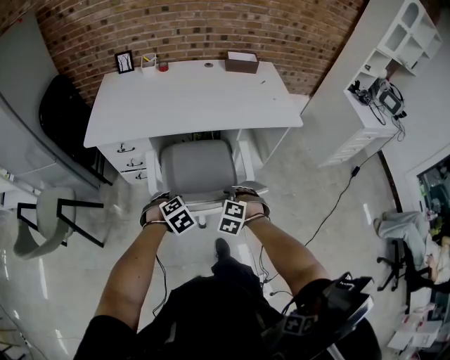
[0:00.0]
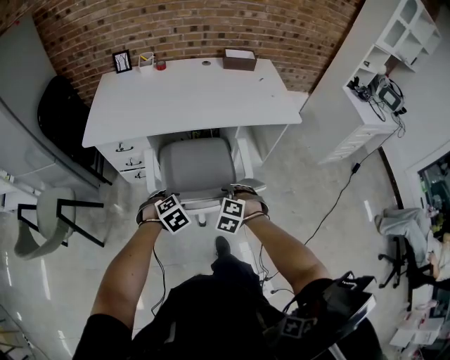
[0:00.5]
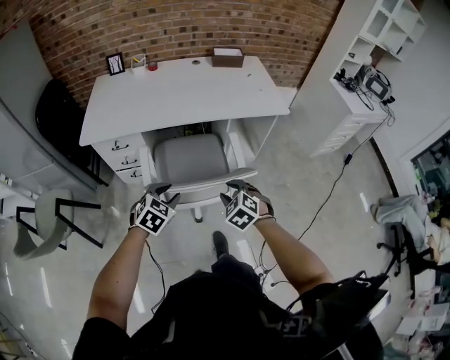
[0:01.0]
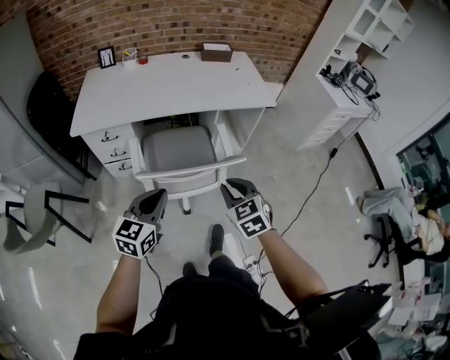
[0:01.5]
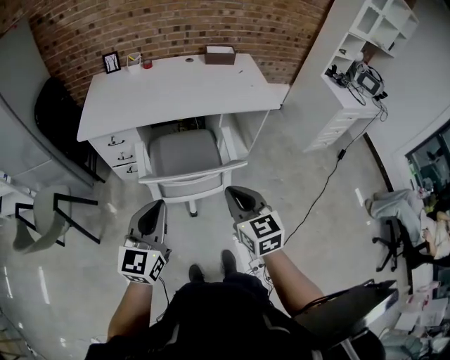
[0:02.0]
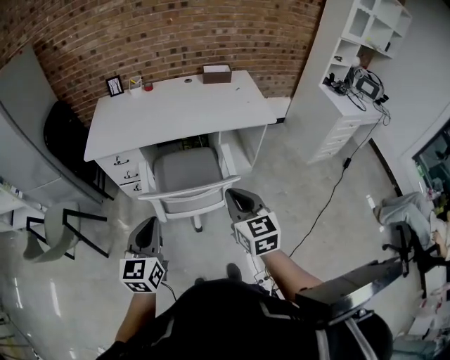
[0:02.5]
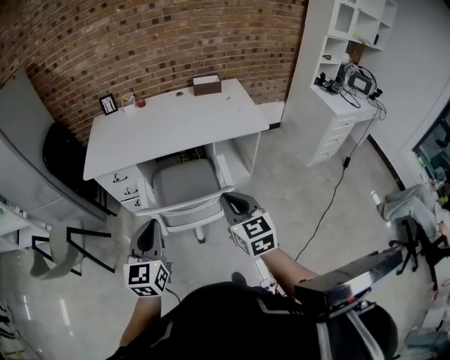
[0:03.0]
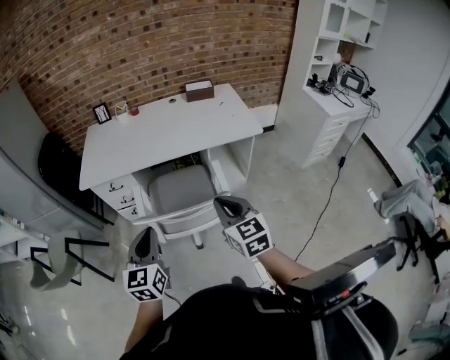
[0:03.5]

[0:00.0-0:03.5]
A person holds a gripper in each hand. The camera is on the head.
0:00.0 to 0:02.0: Both grippers move upward and backward, about 30 cm. The right gripper points its fingers about 40 degrees further upward, and closes; the left gripper points its fingers some 60 degrees further upward, and closes.
0:02.0 to 0:03.5: The right gripper is displaced to the right by roughly 5 cm.

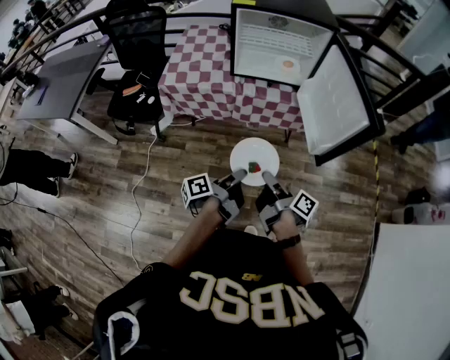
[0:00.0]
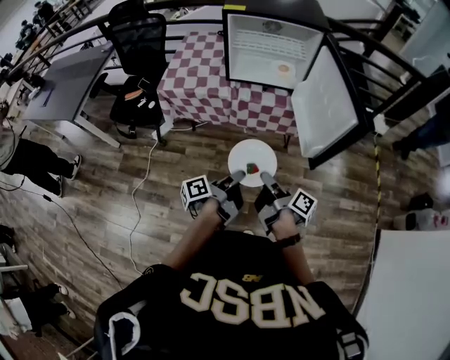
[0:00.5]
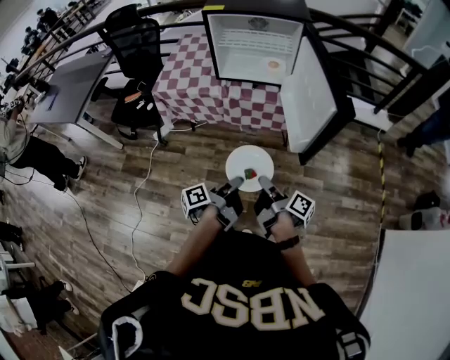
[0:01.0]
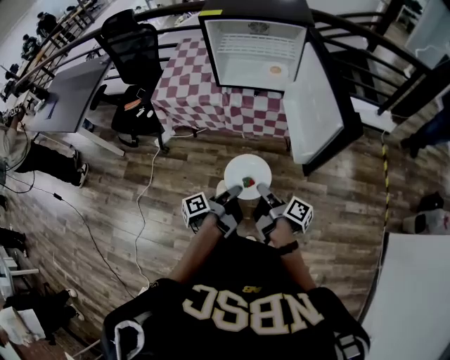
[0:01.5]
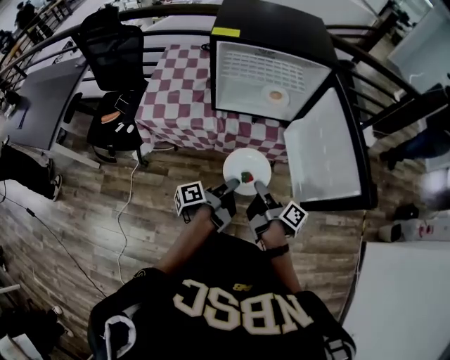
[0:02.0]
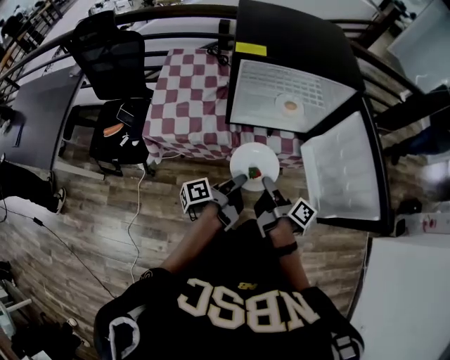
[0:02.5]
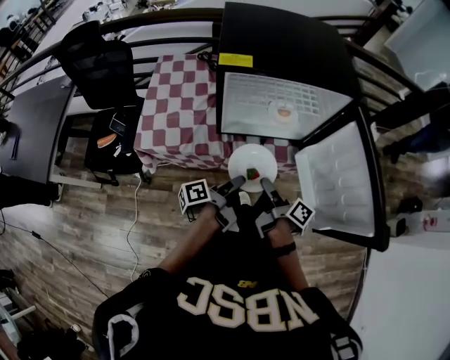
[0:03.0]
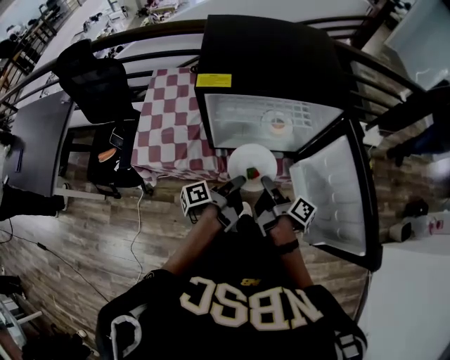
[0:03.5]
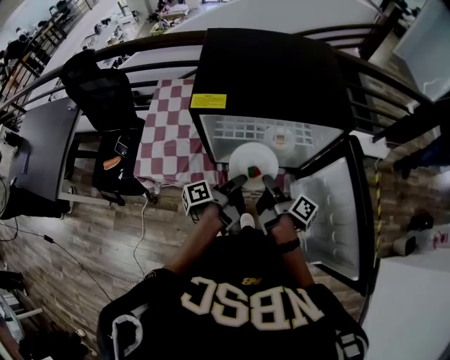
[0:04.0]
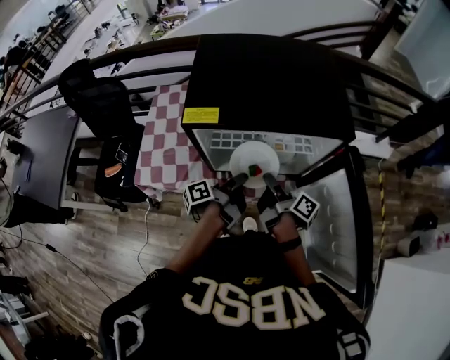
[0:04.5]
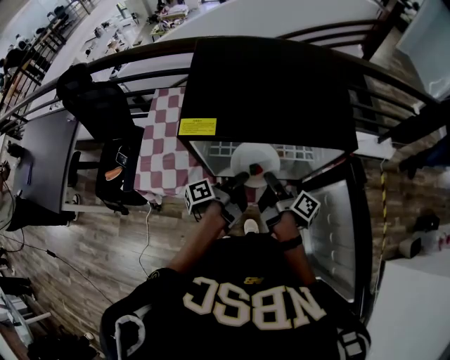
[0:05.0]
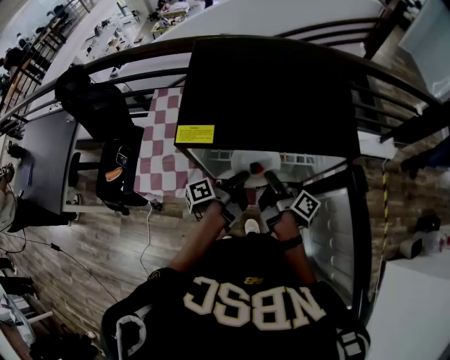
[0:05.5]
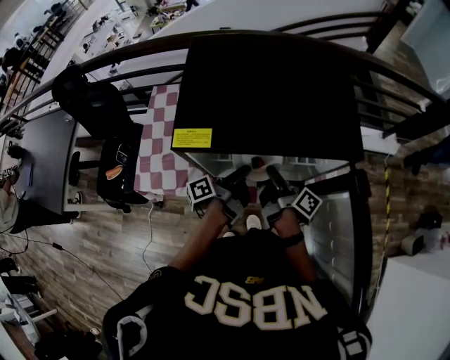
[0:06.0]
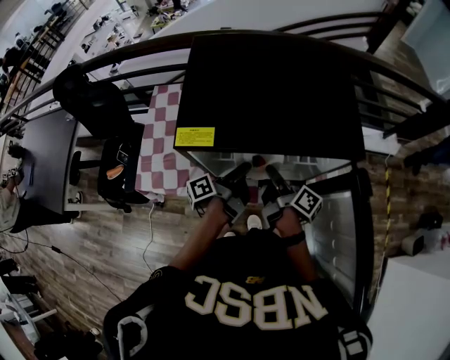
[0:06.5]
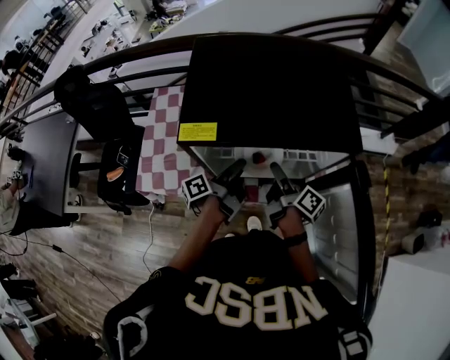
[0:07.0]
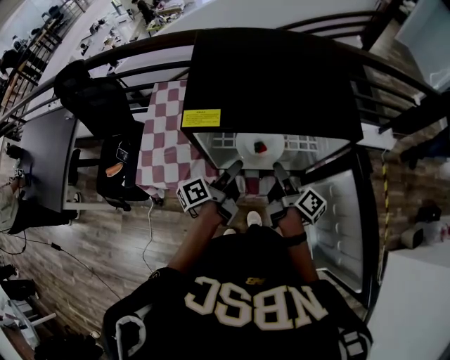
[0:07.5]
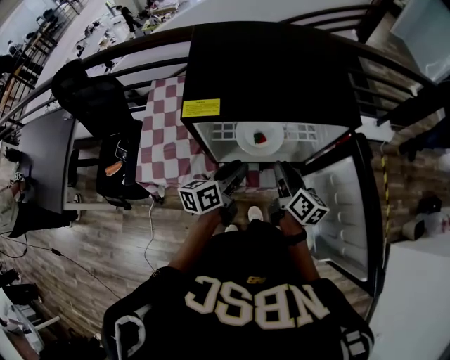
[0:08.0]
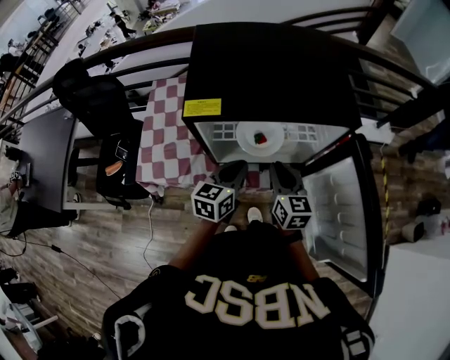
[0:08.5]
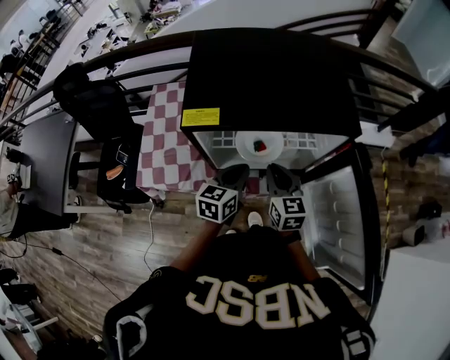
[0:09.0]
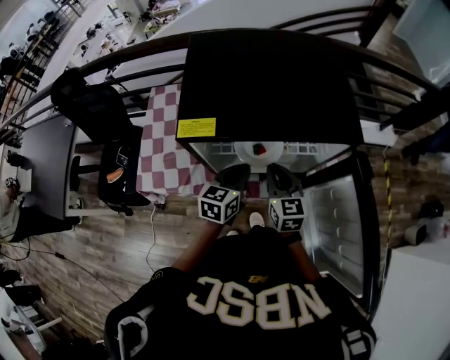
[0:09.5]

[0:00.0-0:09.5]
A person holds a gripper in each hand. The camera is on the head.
0:00.0 to 0:02.0: The right gripper moves some 20 cm.
0:02.0 to 0:04.0: The right gripper moves some 25 cm.
0:04.0 to 0:05.5: The right gripper changes place by some 10 cm.
0:05.5 to 0:07.5: The right gripper opens.
0:07.5 to 0:09.5: The right gripper twists roughly 70 degrees counterclockwise, seen from behind, and closes its fingers.

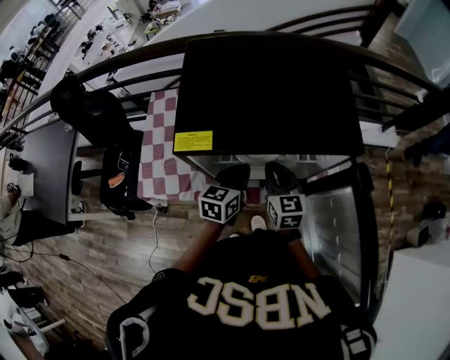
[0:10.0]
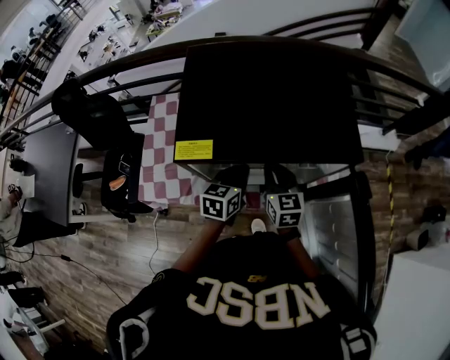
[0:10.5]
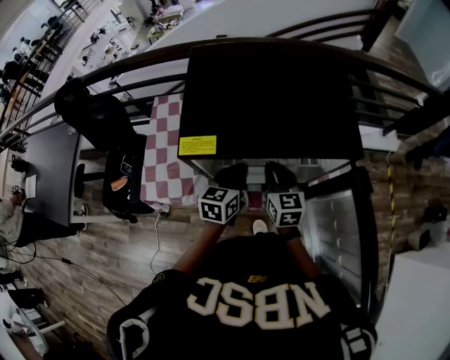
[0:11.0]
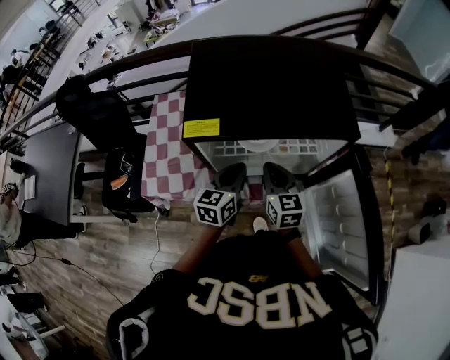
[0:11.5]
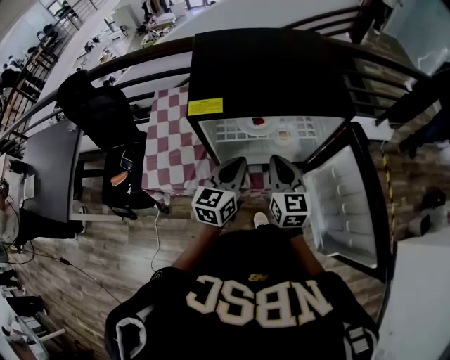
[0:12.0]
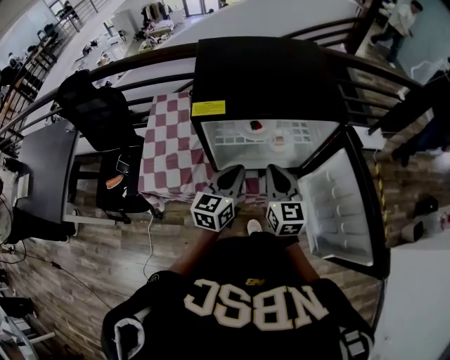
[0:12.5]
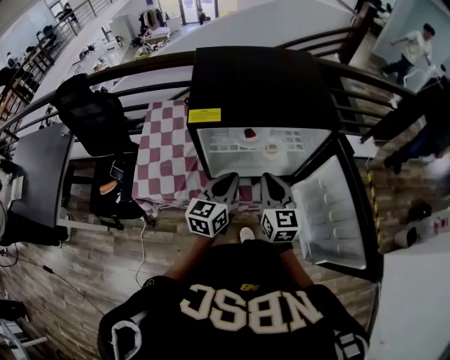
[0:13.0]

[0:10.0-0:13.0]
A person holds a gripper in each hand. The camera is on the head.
0:11.5 to 0:13.0: The right gripper moves roughly 10 cm.

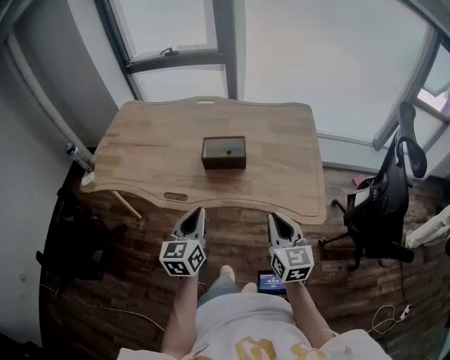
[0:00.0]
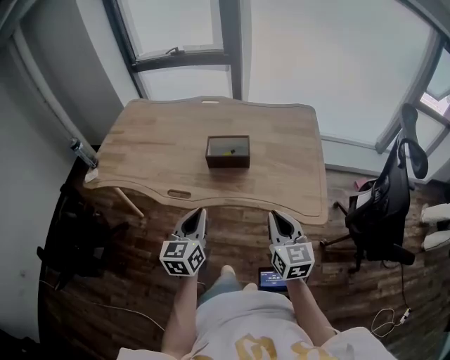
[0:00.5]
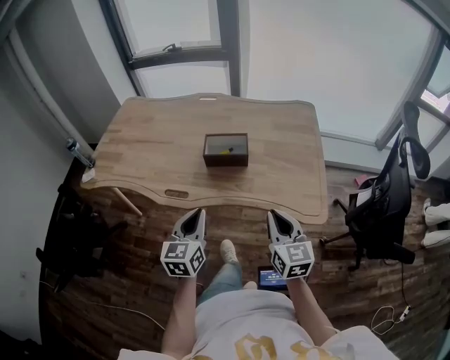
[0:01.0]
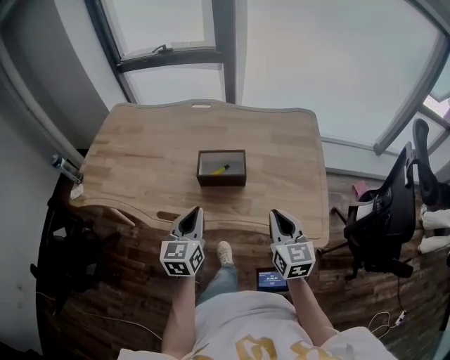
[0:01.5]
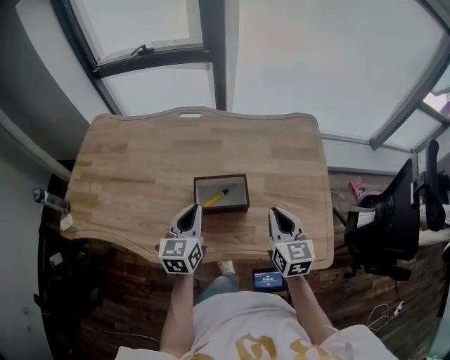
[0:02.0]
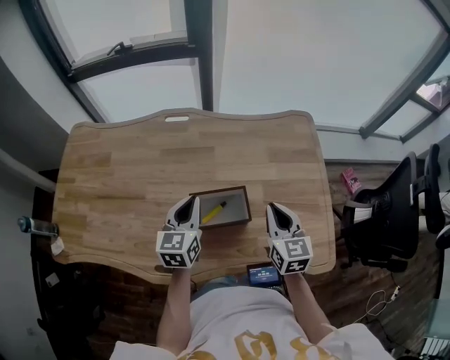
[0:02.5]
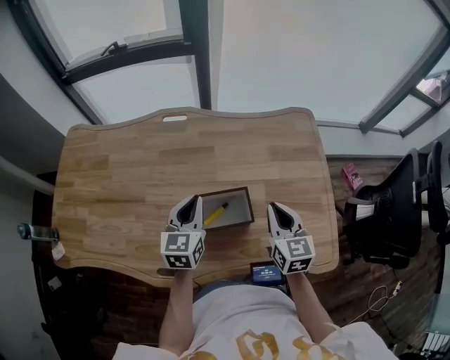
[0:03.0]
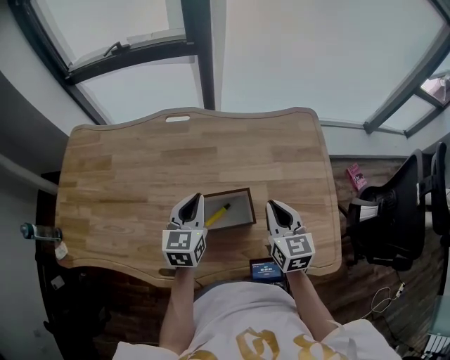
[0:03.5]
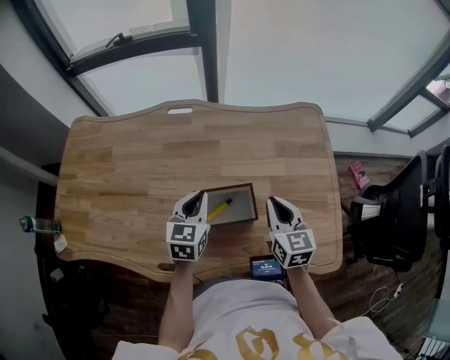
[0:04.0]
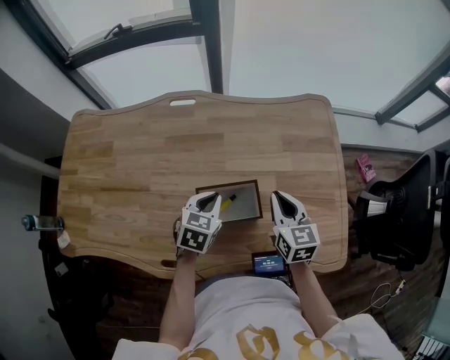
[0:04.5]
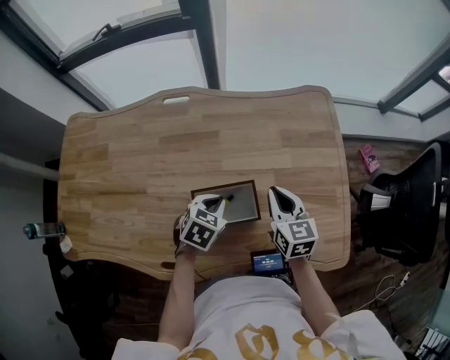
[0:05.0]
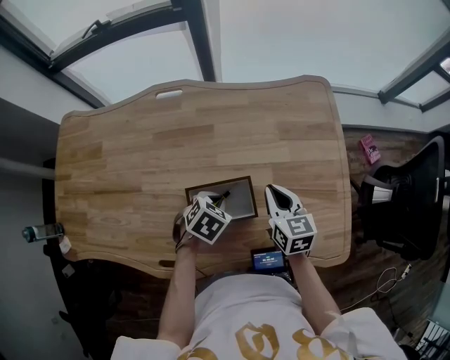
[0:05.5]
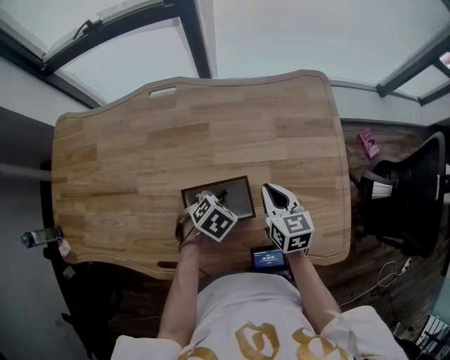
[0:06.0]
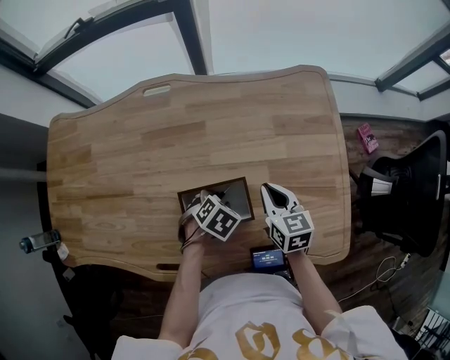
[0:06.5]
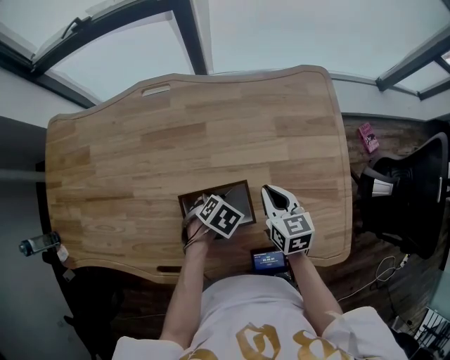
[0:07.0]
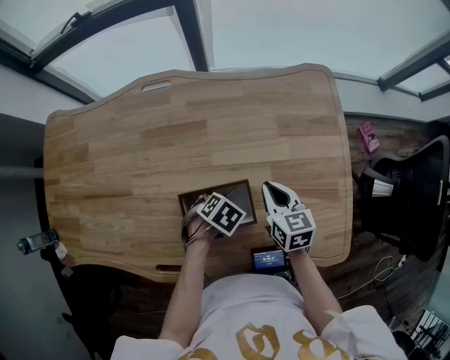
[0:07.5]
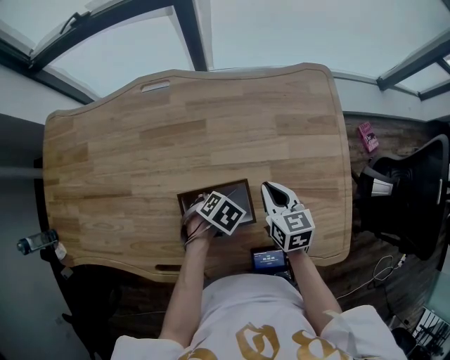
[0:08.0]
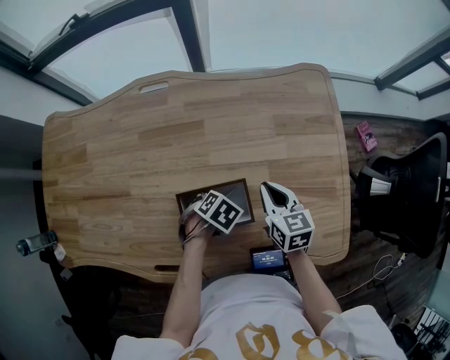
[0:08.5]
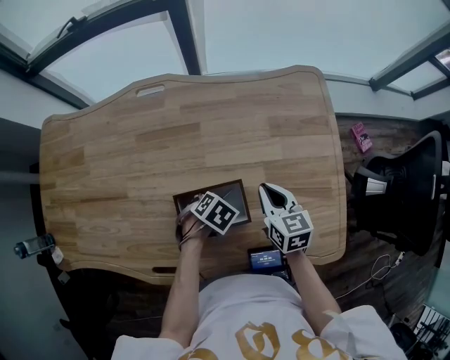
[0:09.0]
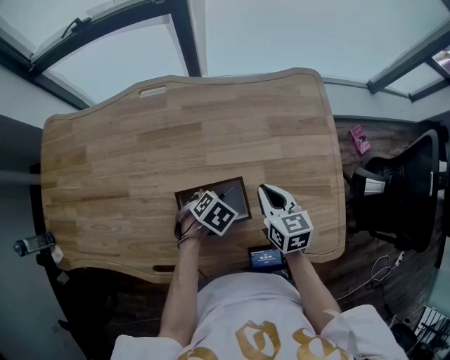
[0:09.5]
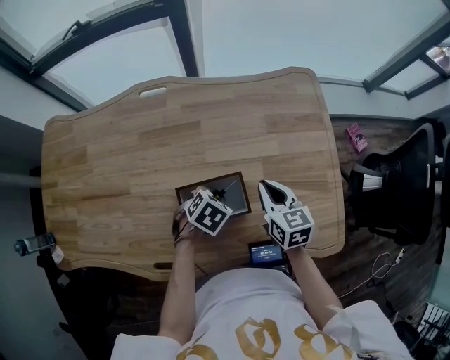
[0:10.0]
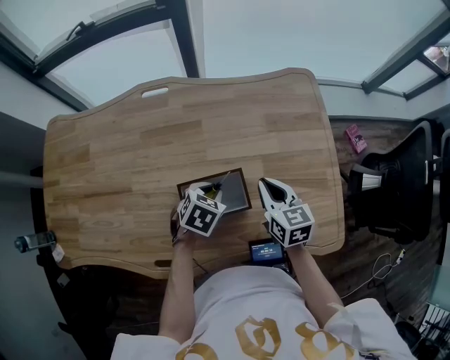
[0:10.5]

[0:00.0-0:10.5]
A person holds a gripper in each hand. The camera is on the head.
0:00.0 to 0:02.0: Both grippers travel together forward, approximately 25 cm.
0:02.0 to 0:04.0: The grippers both shift forward by some 10 cm.
0:04.0 to 0:06.5: The right gripper goes roughly 10 cm downward. The left gripper is displaced downward by some 15 cm, tips its fingers downward by approximately 50 degrees, and opens its fingers.
0:06.5 to 0:08.5: The grippers move only a little.
0:08.5 to 0:10.5: The right gripper shifts by approximately 5 cm; the left gripper heads upward, covering approximately 5 cm, and turns by about 20 degrees.
